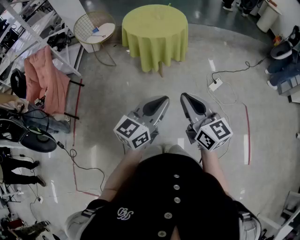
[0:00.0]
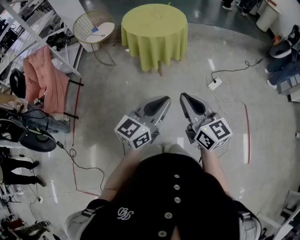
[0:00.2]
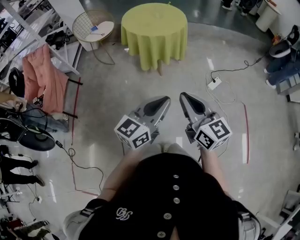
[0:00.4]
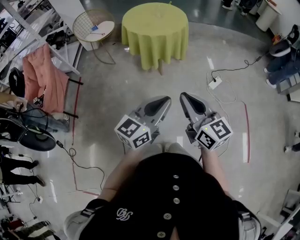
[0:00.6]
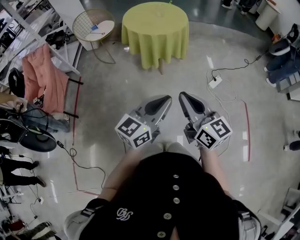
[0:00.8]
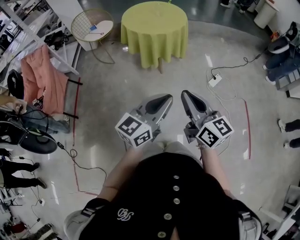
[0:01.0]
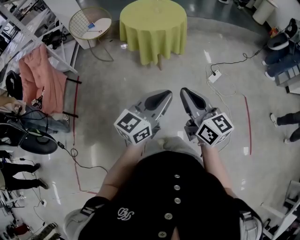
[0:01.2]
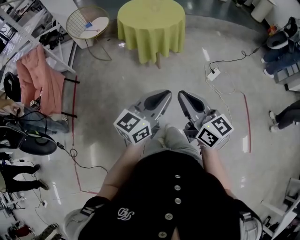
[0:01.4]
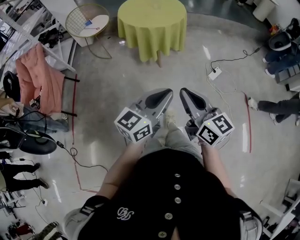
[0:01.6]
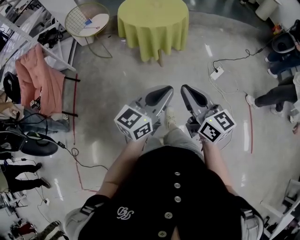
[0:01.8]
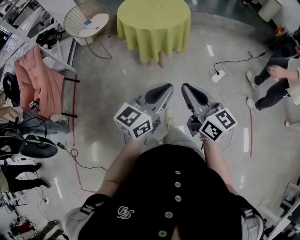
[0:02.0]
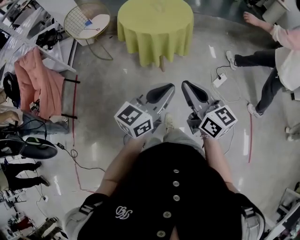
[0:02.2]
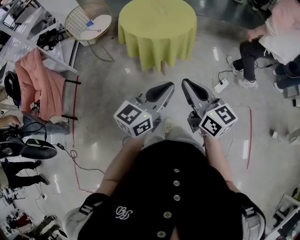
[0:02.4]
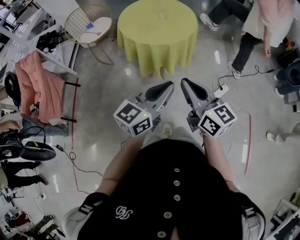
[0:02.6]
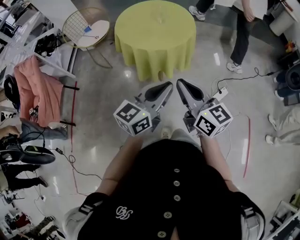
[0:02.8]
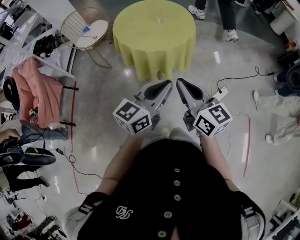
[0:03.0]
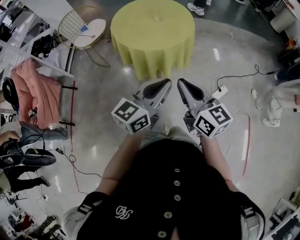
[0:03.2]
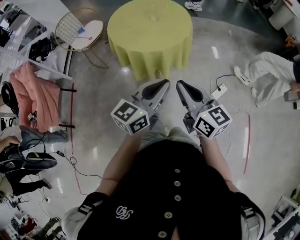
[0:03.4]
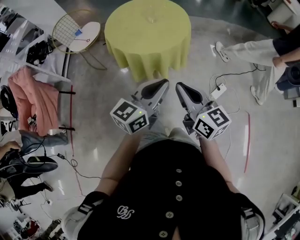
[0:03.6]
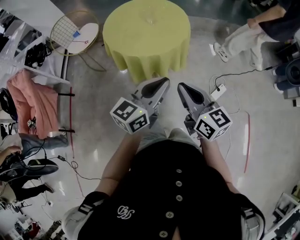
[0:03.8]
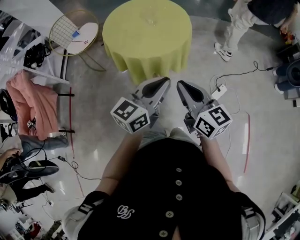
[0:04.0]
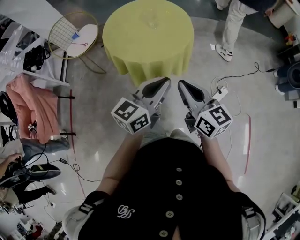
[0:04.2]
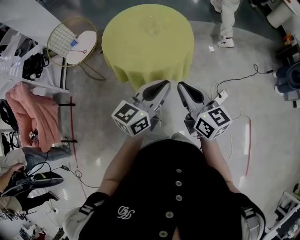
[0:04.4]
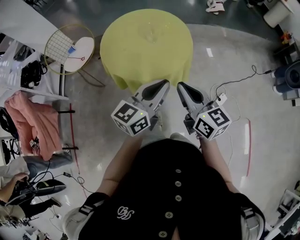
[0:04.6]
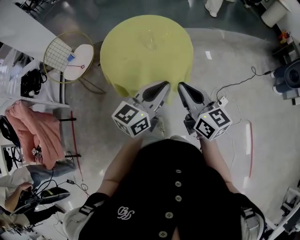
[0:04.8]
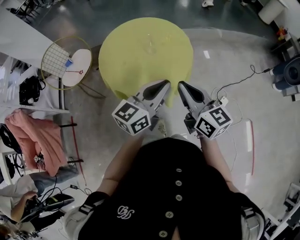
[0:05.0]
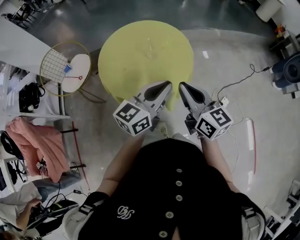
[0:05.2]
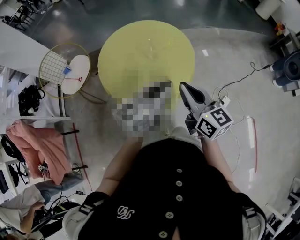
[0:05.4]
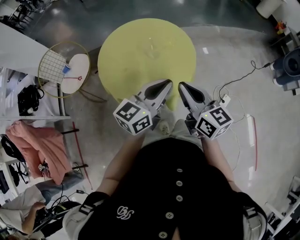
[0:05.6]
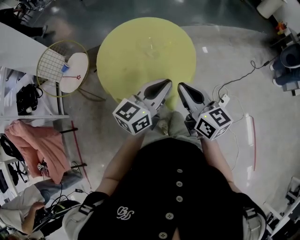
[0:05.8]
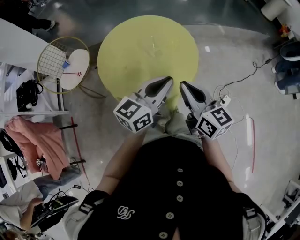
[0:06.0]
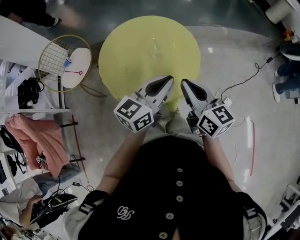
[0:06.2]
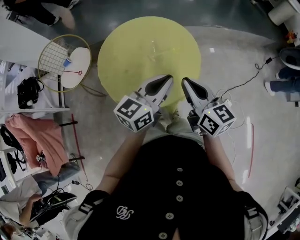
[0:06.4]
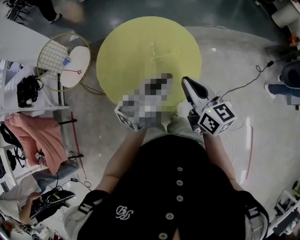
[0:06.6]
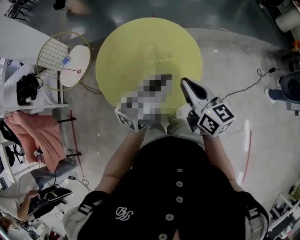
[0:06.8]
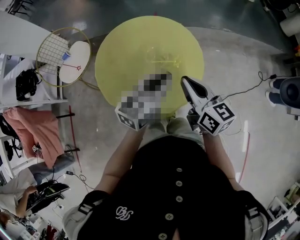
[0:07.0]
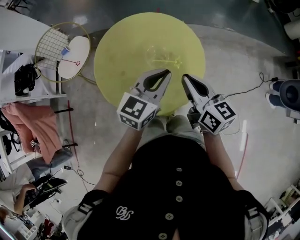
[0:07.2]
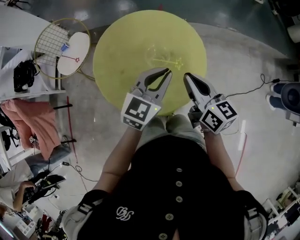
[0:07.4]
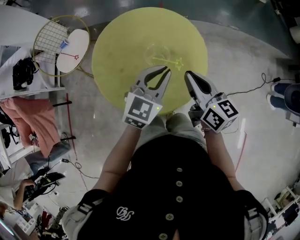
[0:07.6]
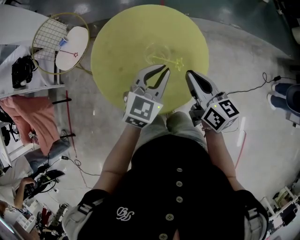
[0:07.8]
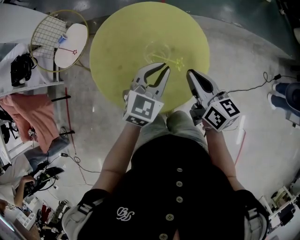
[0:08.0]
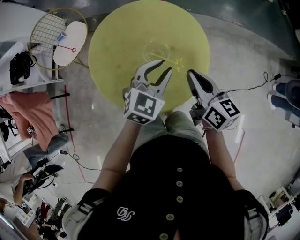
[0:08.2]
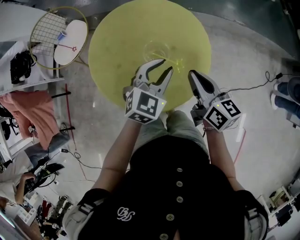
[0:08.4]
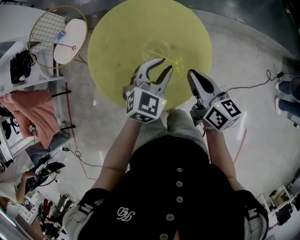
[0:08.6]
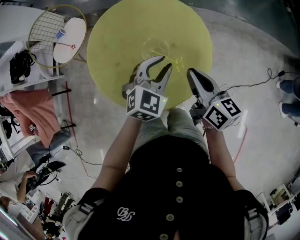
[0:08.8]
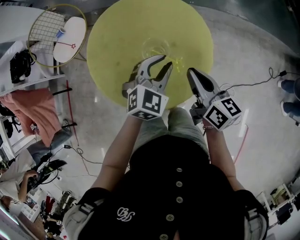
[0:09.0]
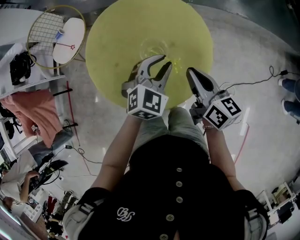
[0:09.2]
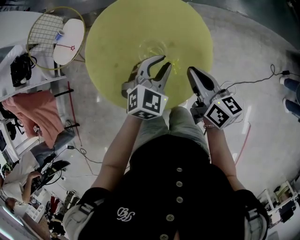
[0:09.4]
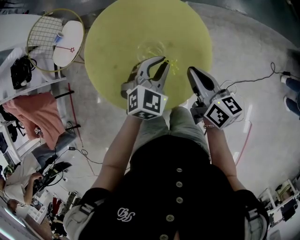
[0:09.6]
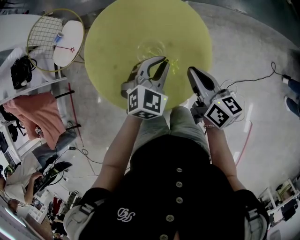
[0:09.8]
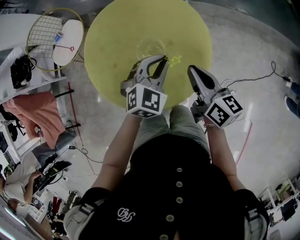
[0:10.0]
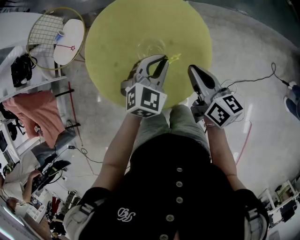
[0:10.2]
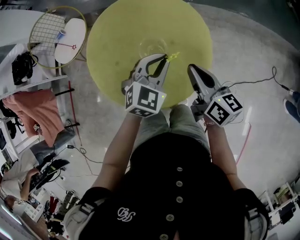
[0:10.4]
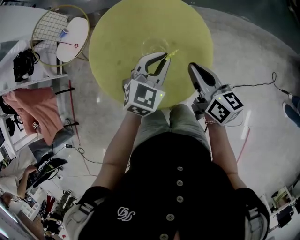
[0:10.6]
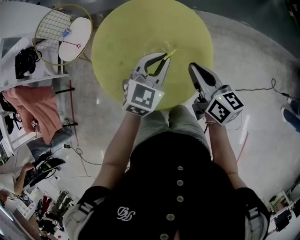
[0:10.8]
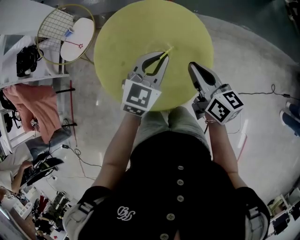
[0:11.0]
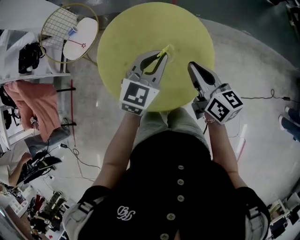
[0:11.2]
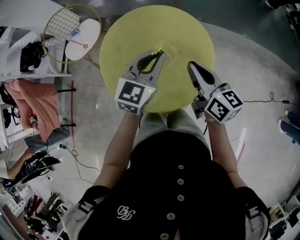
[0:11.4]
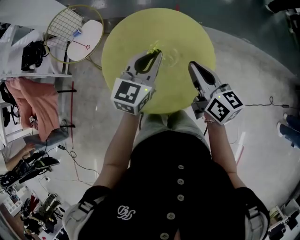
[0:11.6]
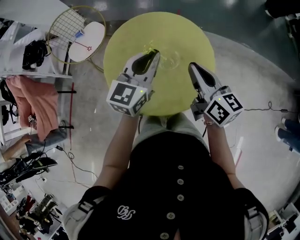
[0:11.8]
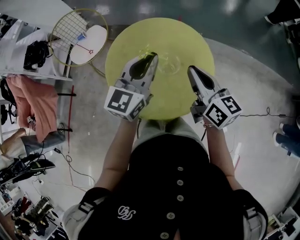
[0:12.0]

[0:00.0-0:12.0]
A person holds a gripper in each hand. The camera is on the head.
0:00.0 to 0:01.6: There are only small adjustments of the grippers.
0:01.6 to 0:03.0: The grippers both shift forward by roughly 30 cm.
0:03.0 to 0:04.4: The two grippers go approximately 15 cm forward.
0:04.4 to 0:06.0: Both grippers move forward, roughly 15 cm.
0:06.0 to 0:07.6: The right gripper travels forward by approximately 15 cm. Meanwhile the left gripper shifts some 15 cm forward and downward, and rotates about 30 degrees.
0:07.6 to 0:09.0: The right gripper changes place by approximately 5 cm. The left gripper goes roughly 5 cm downward, and rotates some 20 degrees.
0:09.0 to 0:10.4: There are only small adjustments of the grippers.
0:10.4 to 0:12.0: The right gripper moves upward and to the left, roughly 10 cm, while the left gripper travels upward and to the left by some 20 cm, and points its fingers some 30 degrees further upward.

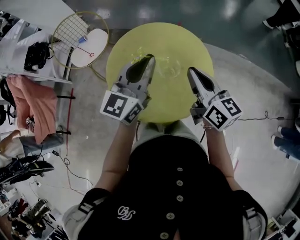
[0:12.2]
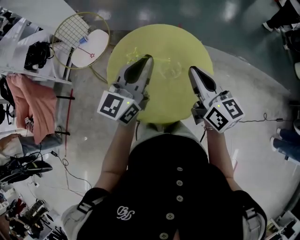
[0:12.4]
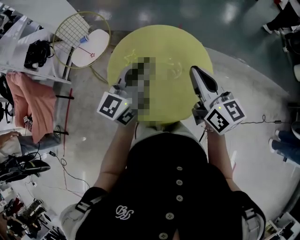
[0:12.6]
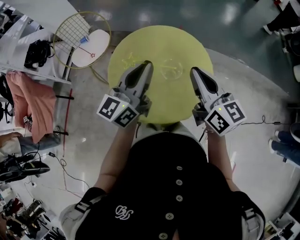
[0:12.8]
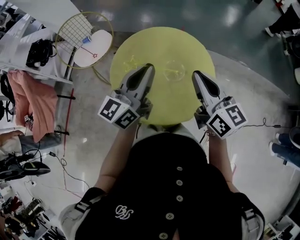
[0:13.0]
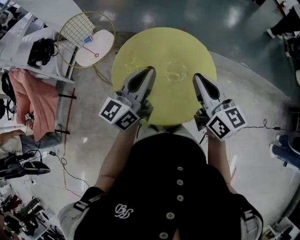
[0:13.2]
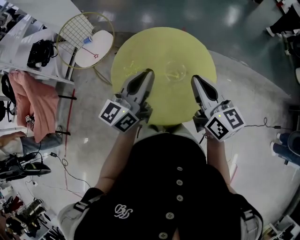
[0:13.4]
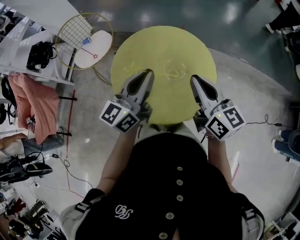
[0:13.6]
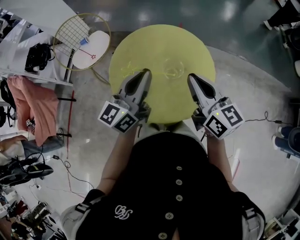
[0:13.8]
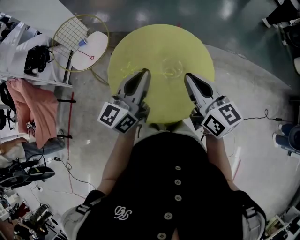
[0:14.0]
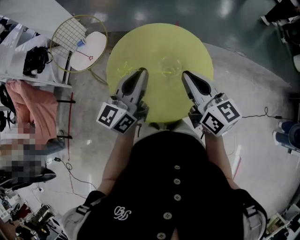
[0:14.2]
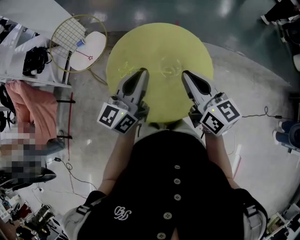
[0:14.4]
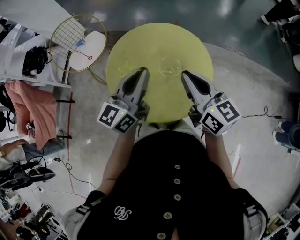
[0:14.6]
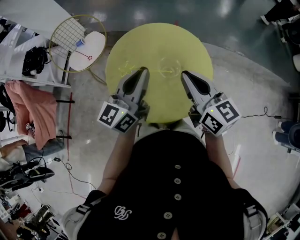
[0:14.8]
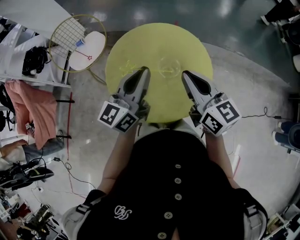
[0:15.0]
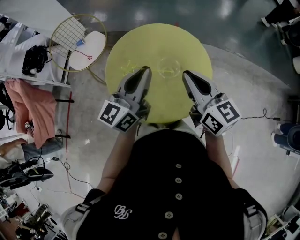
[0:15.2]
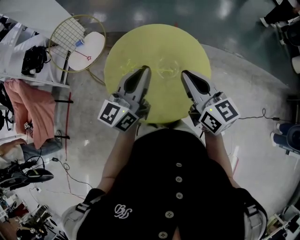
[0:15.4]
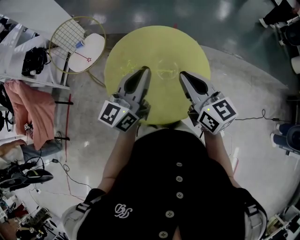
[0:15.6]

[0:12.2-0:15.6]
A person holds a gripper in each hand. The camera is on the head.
0:12.2 to 0:13.8: The left gripper ends up roughly 5 cm from where it was.
0:13.8 to 0:15.6: The grippers move only a little.

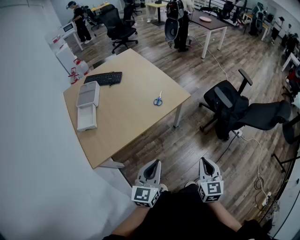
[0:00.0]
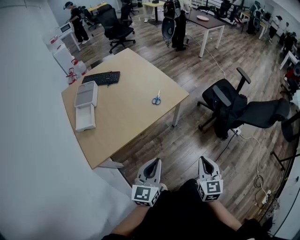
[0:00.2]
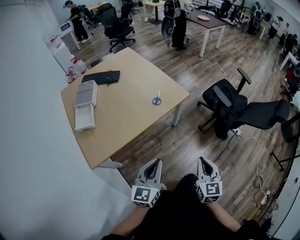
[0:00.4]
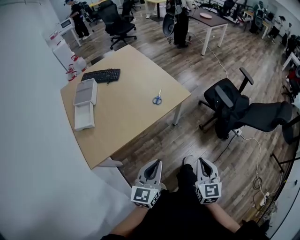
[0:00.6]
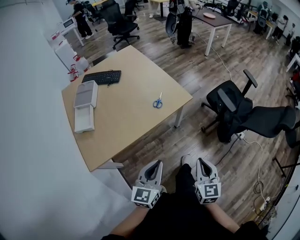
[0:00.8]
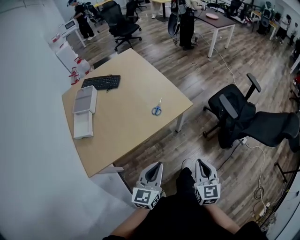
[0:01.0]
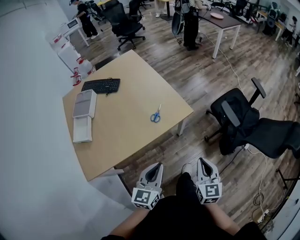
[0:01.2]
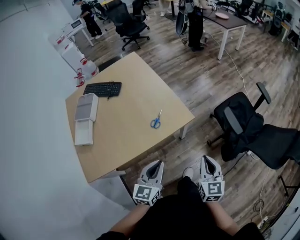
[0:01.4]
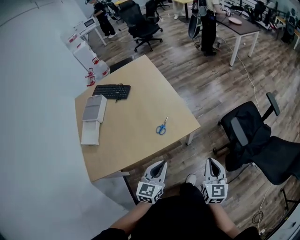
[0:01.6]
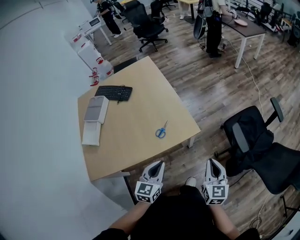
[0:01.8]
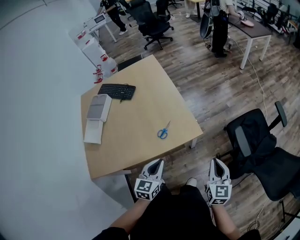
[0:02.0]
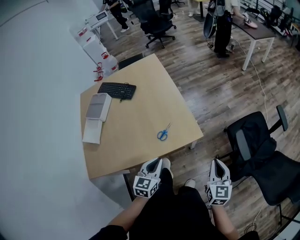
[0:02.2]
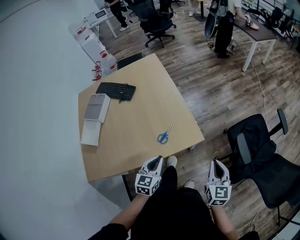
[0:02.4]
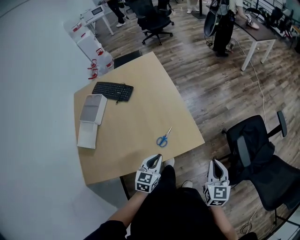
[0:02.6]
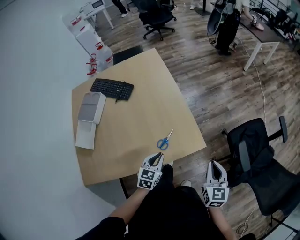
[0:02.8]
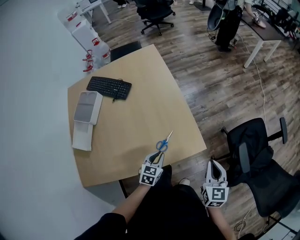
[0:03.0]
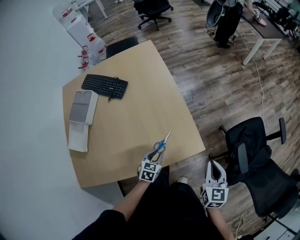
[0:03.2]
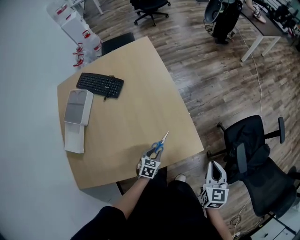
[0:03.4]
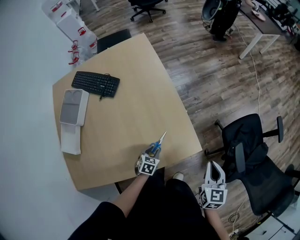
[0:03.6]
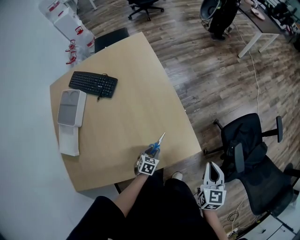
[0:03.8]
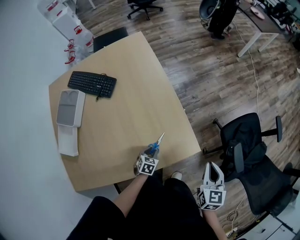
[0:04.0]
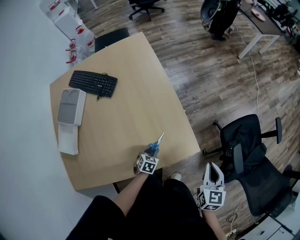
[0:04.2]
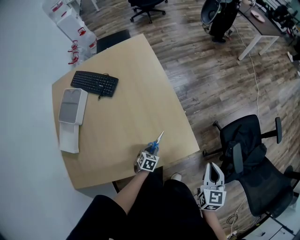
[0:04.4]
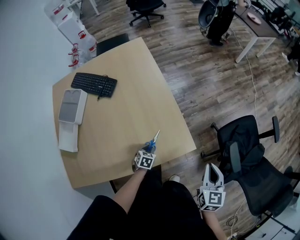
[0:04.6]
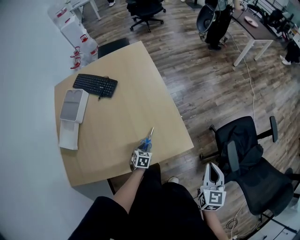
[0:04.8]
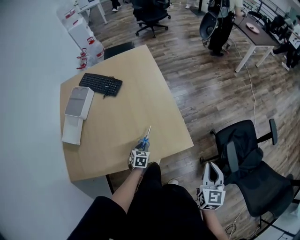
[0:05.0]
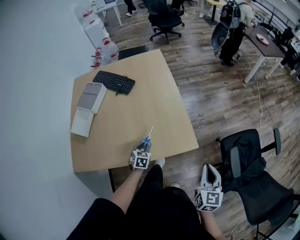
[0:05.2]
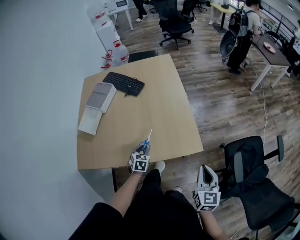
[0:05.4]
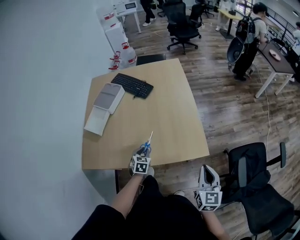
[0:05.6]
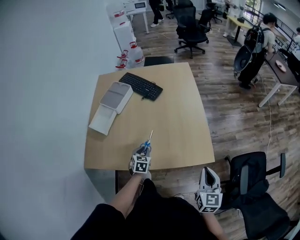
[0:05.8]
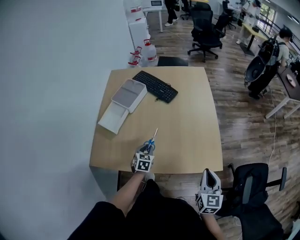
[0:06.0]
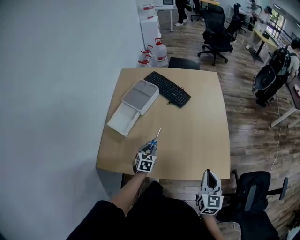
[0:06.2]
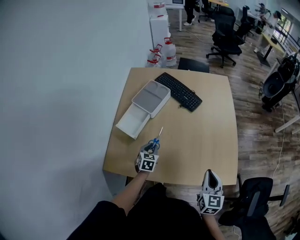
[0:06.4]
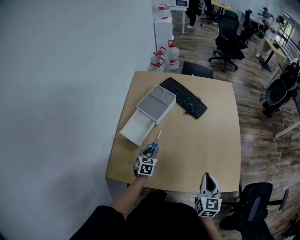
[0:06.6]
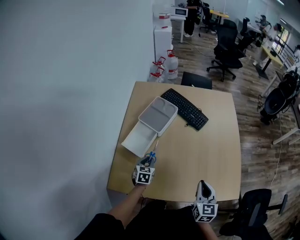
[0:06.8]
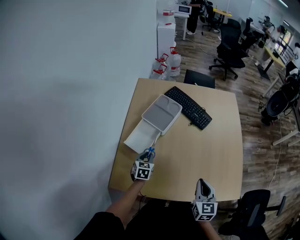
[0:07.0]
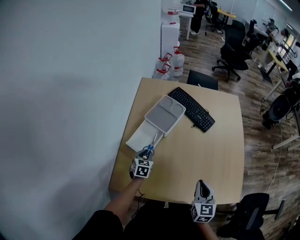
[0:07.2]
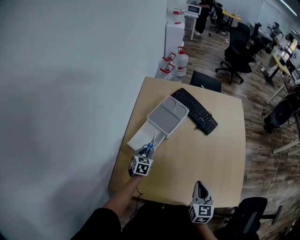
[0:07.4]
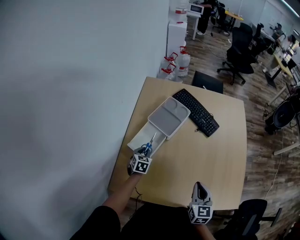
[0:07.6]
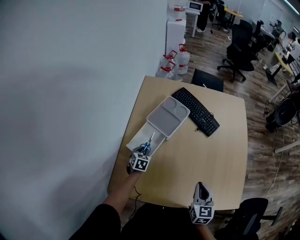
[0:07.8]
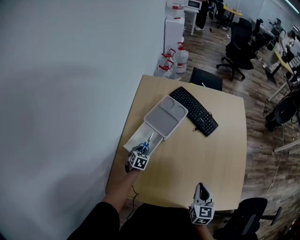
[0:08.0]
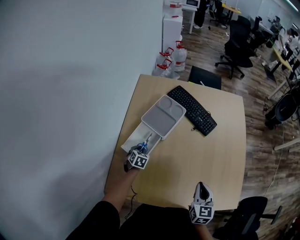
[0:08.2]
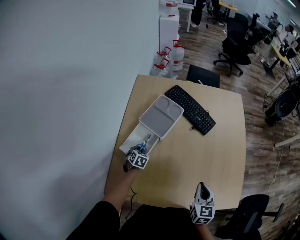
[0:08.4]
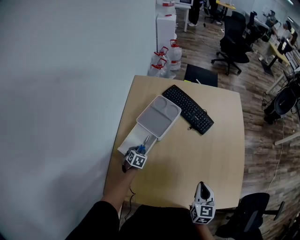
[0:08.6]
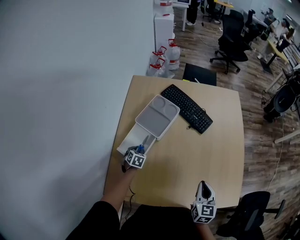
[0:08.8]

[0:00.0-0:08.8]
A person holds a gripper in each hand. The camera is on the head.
0:00.0 to 0:01.4: Both grippers travel together forward, roughly 25 cm.
0:01.4 to 0:03.0: The left gripper shifts roughly 30 cm forward and downward, and swivels approximately 30 degrees. Meanwhile the right gripper is displaced forward by approximately 25 cm.
0:03.0 to 0:04.4: The left gripper travels downward by roughly 15 cm, and swivels some 20 degrees.
0:04.4 to 0:05.8: The left gripper ends up about 25 cm from where it was, and rotates approximately 30 degrees, while the right gripper ends up approximately 15 cm from where it was, and changes its angle by roughly 20 degrees.
0:05.8 to 0:07.4: Both grippers travel together to the left and forward, approximately 40 cm.
0:07.4 to 0:08.8: The left gripper travels downward by roughly 10 cm. Meanwhile the right gripper is displaced to the right by some 5 cm.
